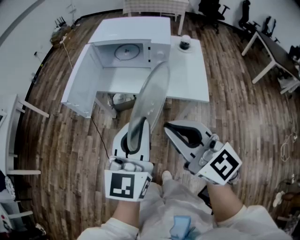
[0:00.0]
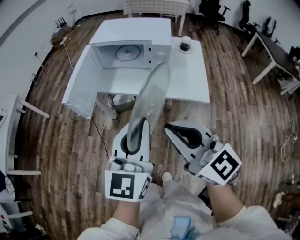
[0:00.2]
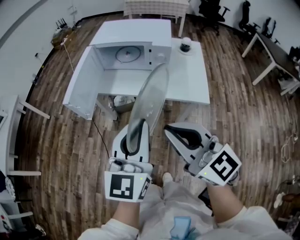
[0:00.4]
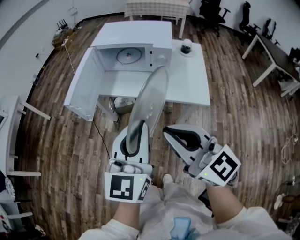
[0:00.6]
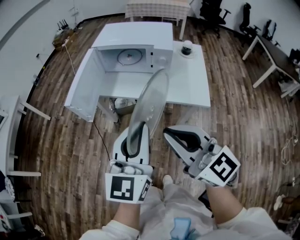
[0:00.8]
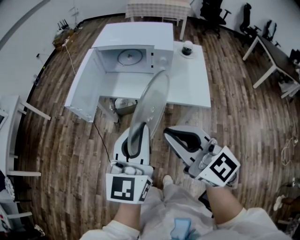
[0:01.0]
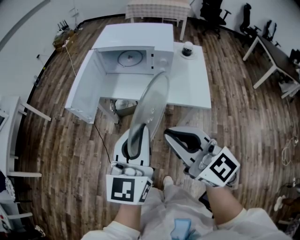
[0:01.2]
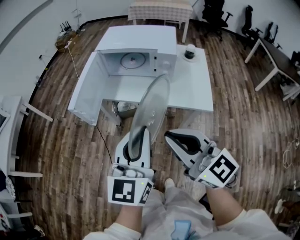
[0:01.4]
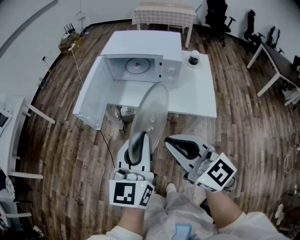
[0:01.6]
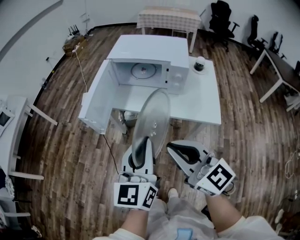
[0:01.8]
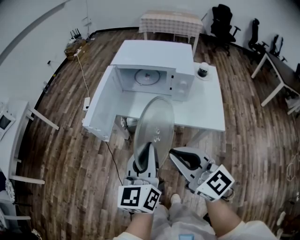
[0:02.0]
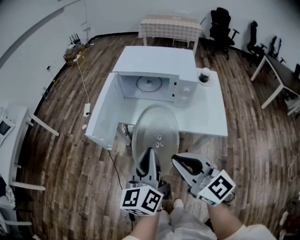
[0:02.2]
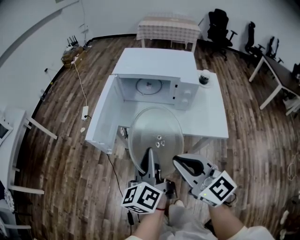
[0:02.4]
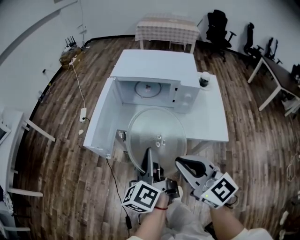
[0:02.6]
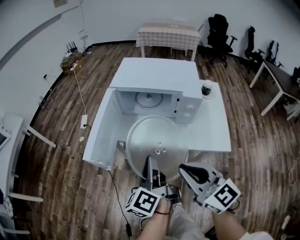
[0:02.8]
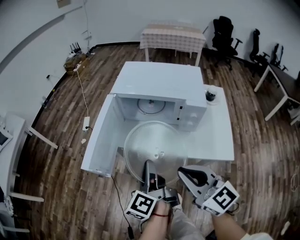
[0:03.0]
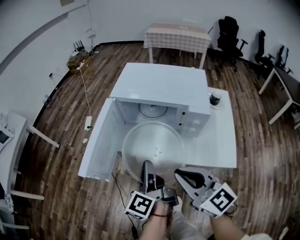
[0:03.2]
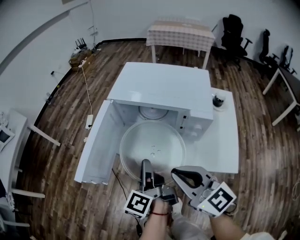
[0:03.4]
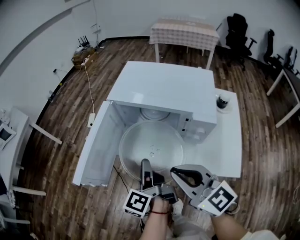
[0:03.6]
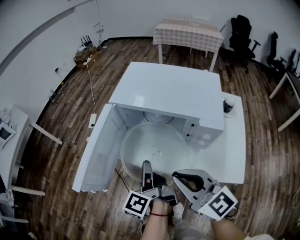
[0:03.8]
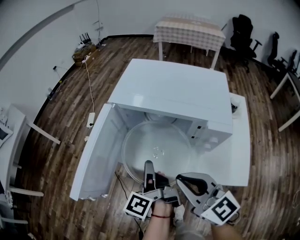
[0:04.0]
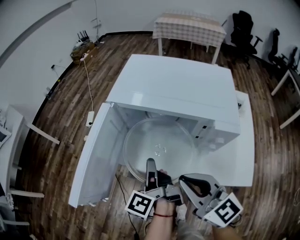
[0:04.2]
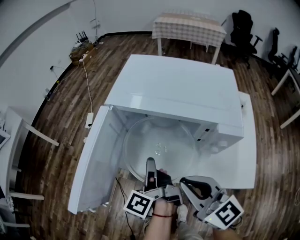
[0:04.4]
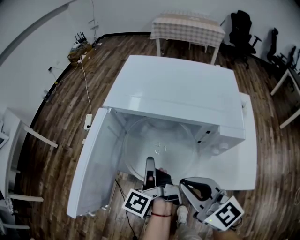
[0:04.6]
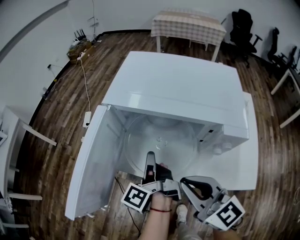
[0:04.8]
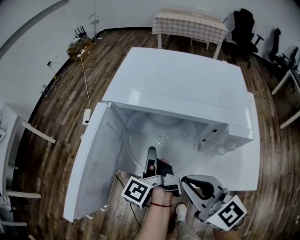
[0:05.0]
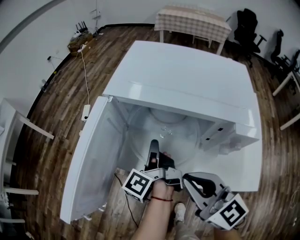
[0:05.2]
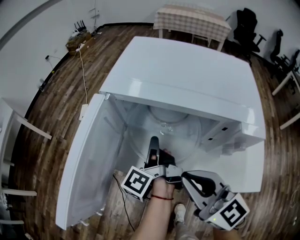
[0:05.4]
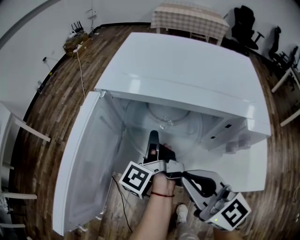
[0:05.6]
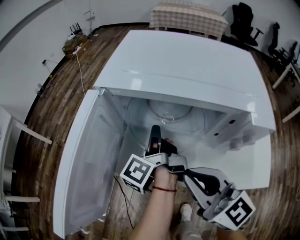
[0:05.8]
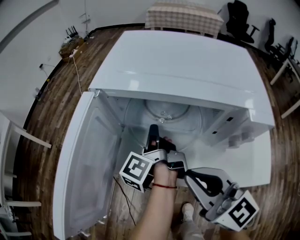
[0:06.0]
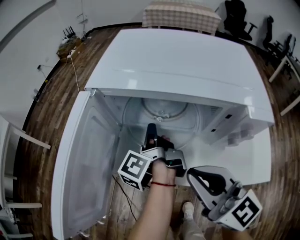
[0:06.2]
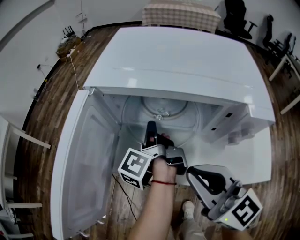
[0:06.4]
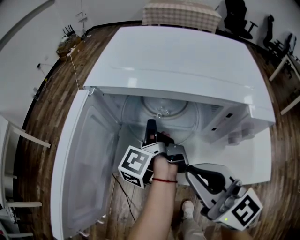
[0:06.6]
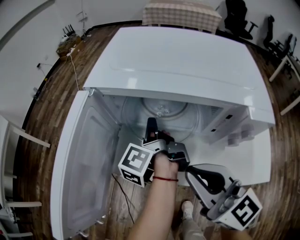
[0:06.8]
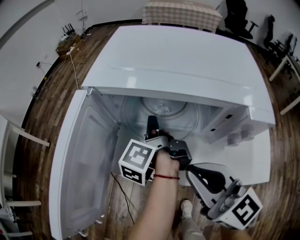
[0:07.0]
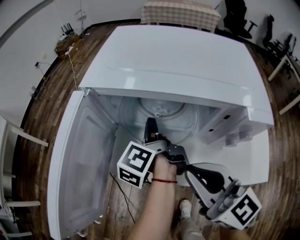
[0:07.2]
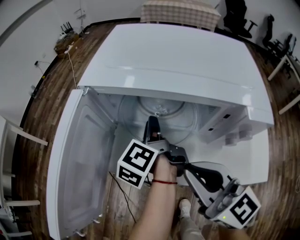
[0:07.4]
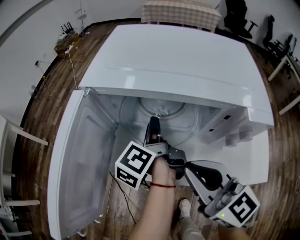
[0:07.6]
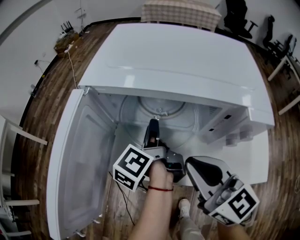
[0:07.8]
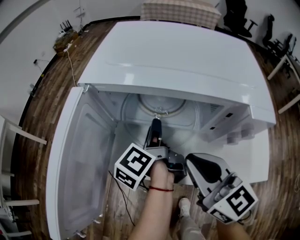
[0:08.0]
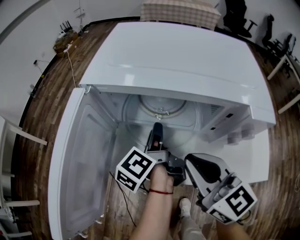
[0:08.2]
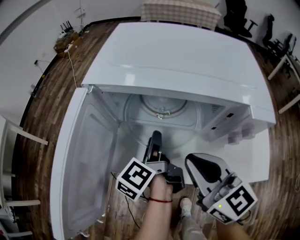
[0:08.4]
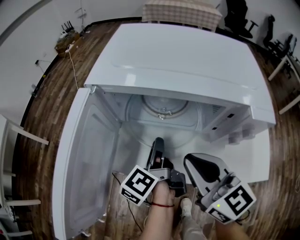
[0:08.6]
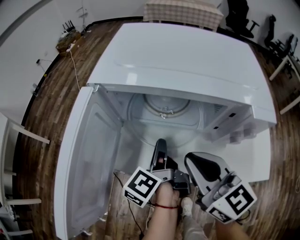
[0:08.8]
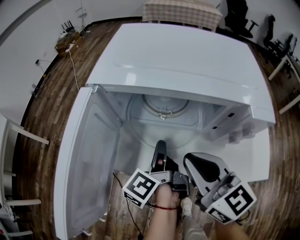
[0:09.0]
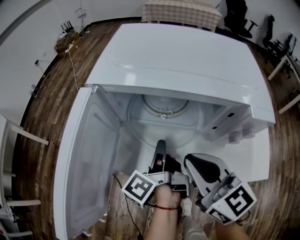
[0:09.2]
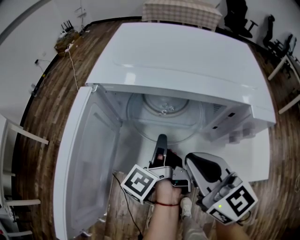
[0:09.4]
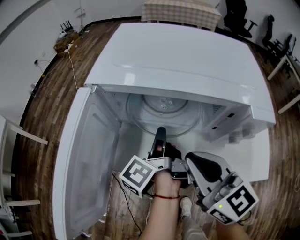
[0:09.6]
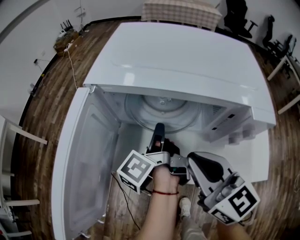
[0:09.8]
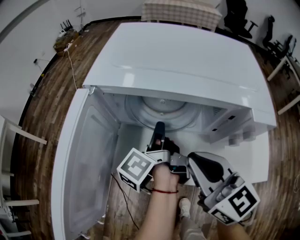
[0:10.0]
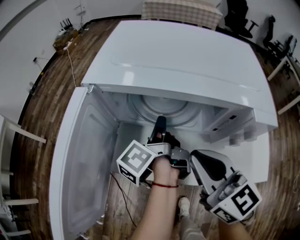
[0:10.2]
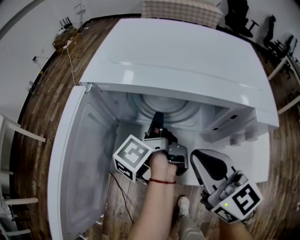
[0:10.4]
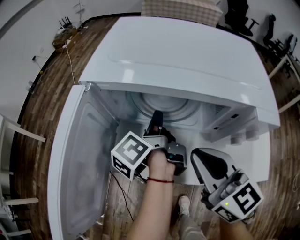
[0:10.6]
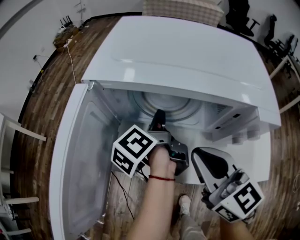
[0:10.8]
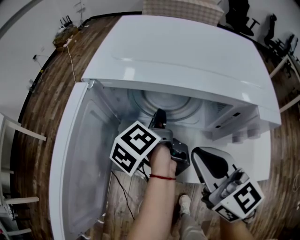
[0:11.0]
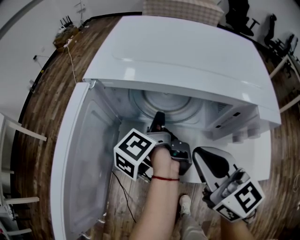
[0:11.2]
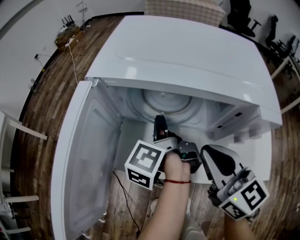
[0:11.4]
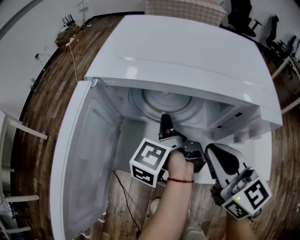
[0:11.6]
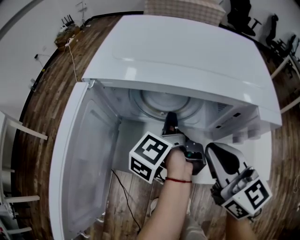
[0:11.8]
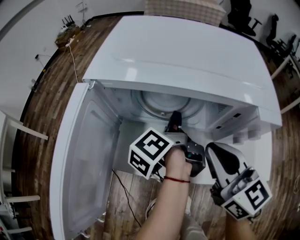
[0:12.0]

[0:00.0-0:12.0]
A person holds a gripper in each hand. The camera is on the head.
0:00.0 to 0:01.6: The grippers make only small movements.
0:01.6 to 0:03.0: Both grippers move forward and downward, approximately 20 cm. The left gripper rotates around the line of its fingers by about 60 degrees, counterclockwise from behind.
0:03.0 to 0:04.4: The two grippers go some 15 cm forward and downward.
0:04.4 to 0:06.0: The left gripper travels forward and downward by about 15 cm. The right gripper changes place by roughly 5 cm.
0:06.0 to 0:07.6: The left gripper opens up.
0:07.6 to 0:09.0: The left gripper shifts some 5 cm backward, and closes its fingers.
0:09.0 to 0:10.4: The left gripper heads forward, covering about 10 cm.
0:10.4 to 0:12.0: The grippers make only small movements.

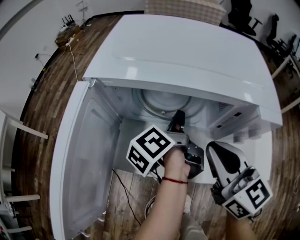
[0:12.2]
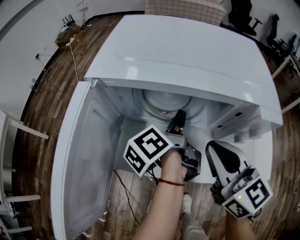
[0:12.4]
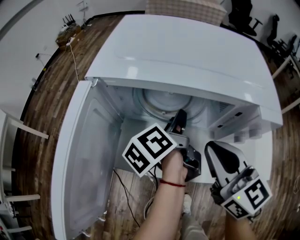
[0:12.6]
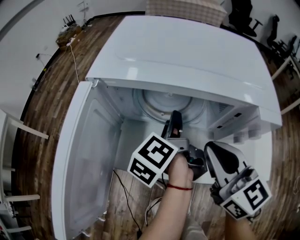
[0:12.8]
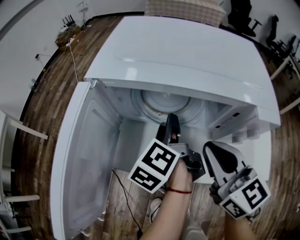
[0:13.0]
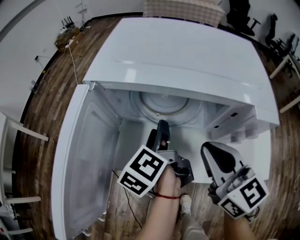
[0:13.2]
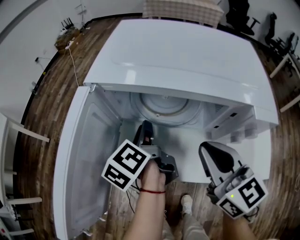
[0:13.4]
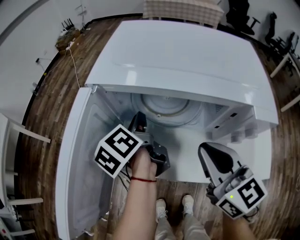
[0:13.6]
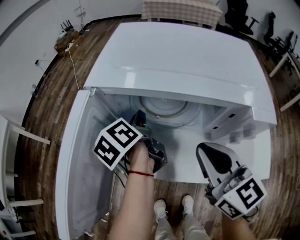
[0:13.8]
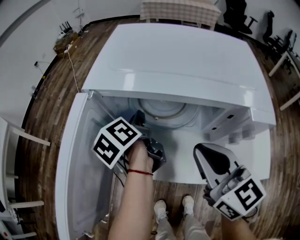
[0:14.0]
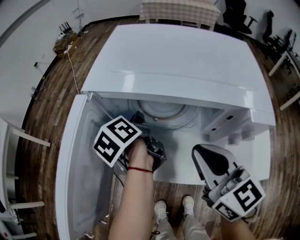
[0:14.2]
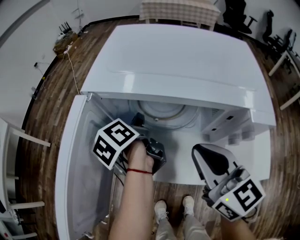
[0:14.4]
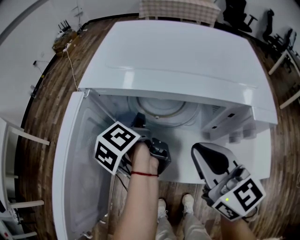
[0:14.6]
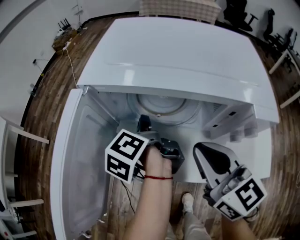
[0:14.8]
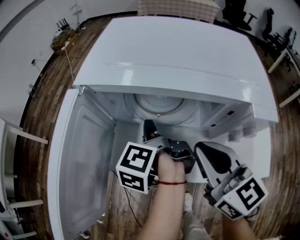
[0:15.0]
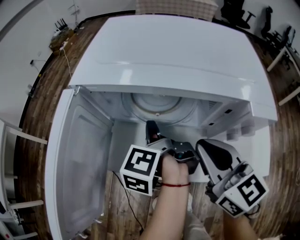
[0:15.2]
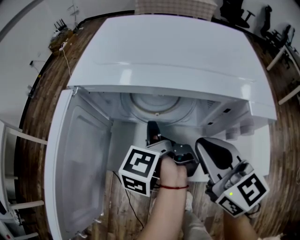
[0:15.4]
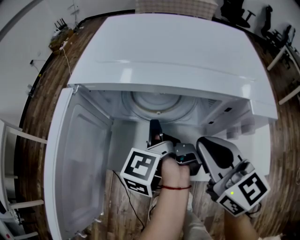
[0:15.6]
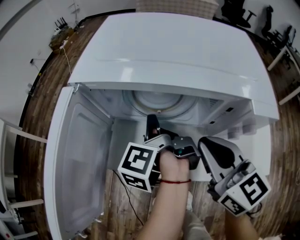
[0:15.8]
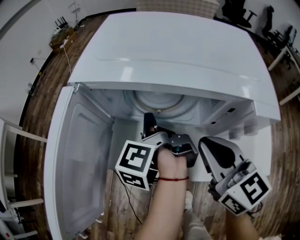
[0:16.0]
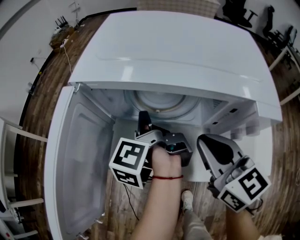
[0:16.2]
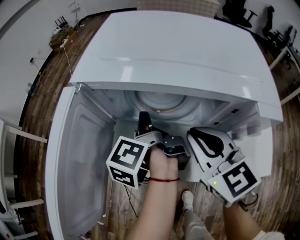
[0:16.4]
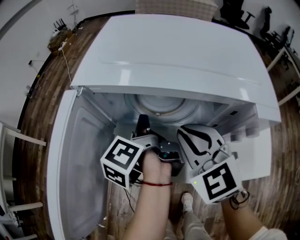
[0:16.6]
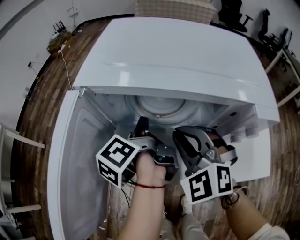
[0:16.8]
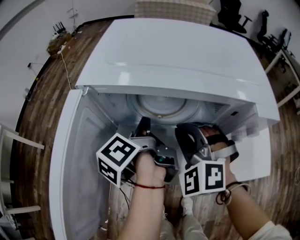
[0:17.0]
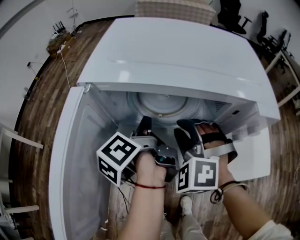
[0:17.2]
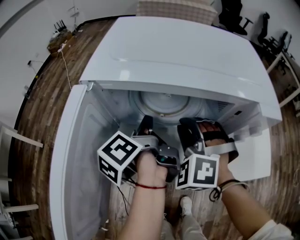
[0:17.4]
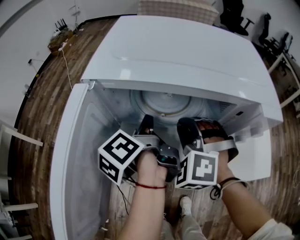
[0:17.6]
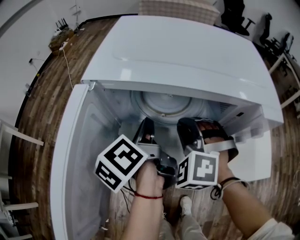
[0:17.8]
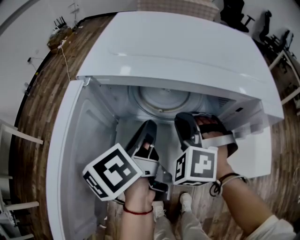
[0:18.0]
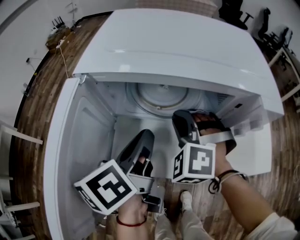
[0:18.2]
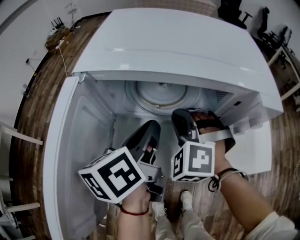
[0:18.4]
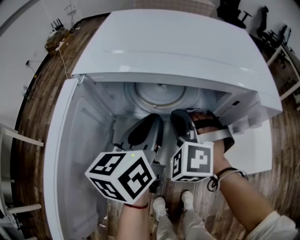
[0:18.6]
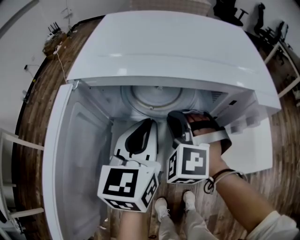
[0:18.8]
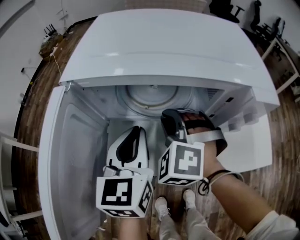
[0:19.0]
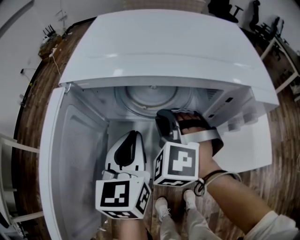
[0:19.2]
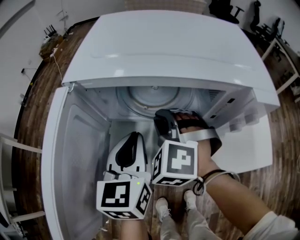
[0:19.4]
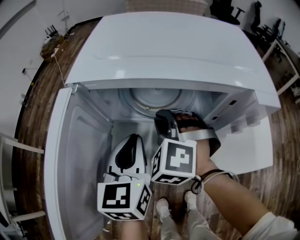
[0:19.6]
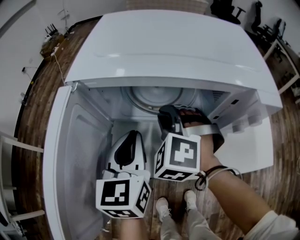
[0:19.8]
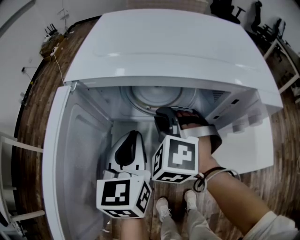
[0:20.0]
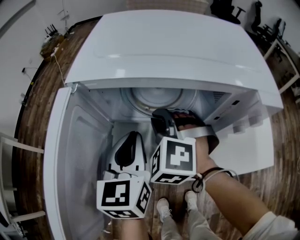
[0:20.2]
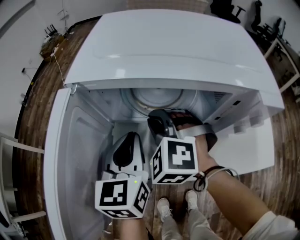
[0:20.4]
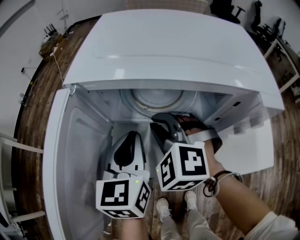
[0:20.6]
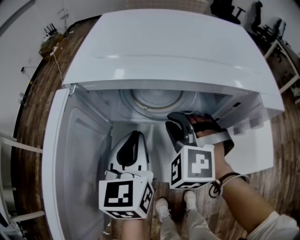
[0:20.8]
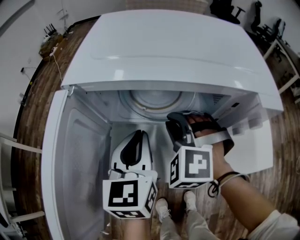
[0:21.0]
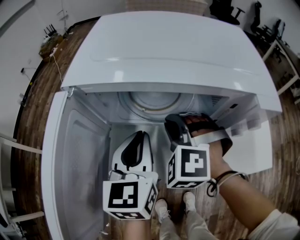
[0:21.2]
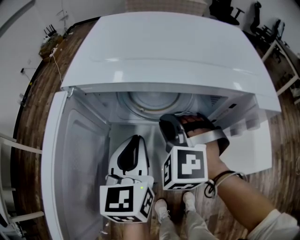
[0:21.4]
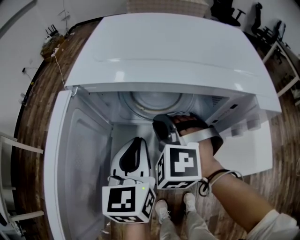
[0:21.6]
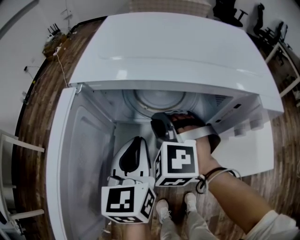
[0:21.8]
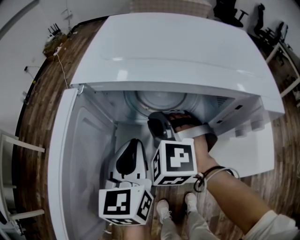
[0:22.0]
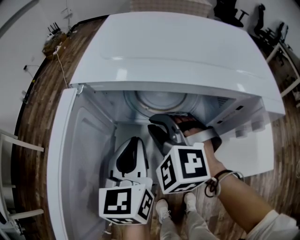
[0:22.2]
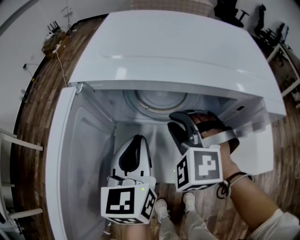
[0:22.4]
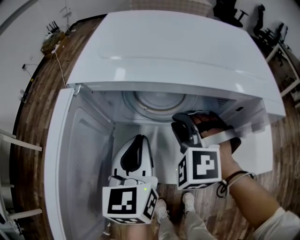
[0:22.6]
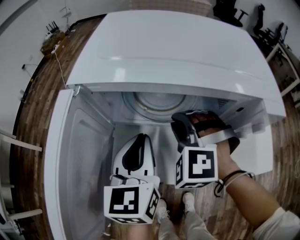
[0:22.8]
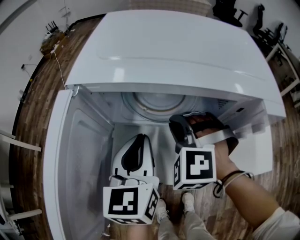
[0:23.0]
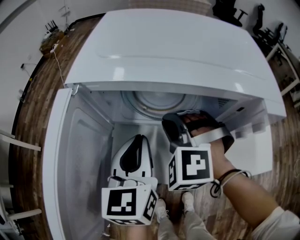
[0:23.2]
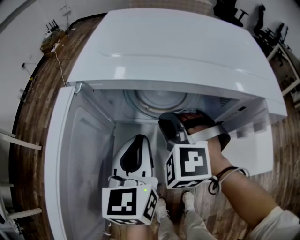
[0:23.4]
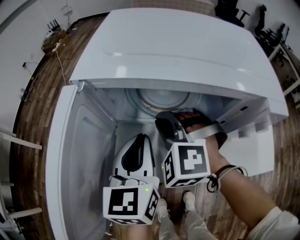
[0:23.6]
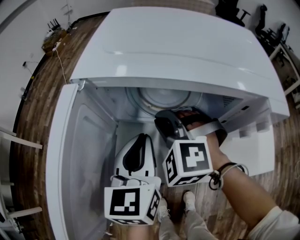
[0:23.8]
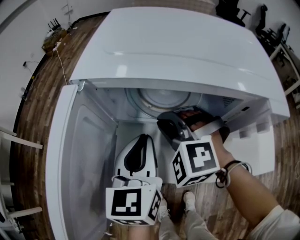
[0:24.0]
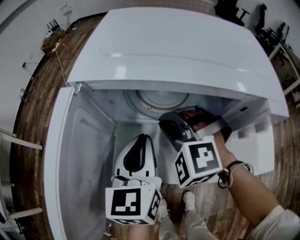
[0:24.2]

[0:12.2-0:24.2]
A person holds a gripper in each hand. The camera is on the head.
0:12.2 to 0:13.8: The left gripper travels to the left by approximately 10 cm, rotates about 30 degrees, and opens, then closes again.
0:13.8 to 0:15.2: The left gripper moves backward, some 5 cm, and changes its angle by roughly 30 degrees.
0:15.2 to 0:16.6: The right gripper moves forward, approximately 5 cm, and changes its angle by approximately 40 degrees.
0:16.6 to 0:18.2: The left gripper is displaced backward by some 5 cm, and changes its angle by approximately 40 degrees. Meanwhile the right gripper goes about 5 cm downward, and swivels some 40 degrees.
0:18.2 to 0:19.8: The left gripper twists approximately 50 degrees clockwise, seen from behind.
0:19.8 to 0:21.2: The grippers make only small movements.
0:22.6 to 0:24.2: The grippers make only small movements.
